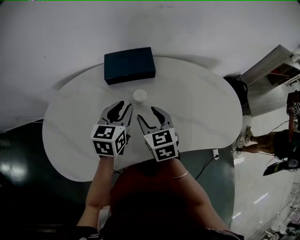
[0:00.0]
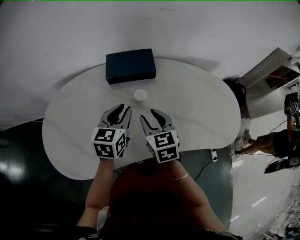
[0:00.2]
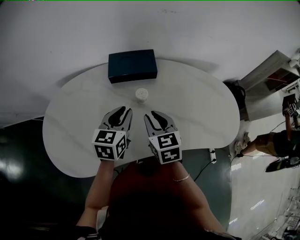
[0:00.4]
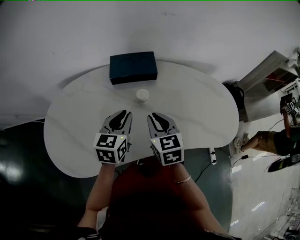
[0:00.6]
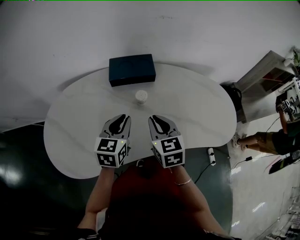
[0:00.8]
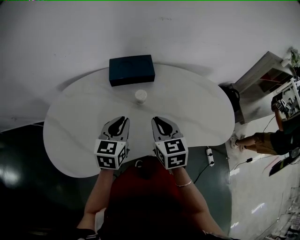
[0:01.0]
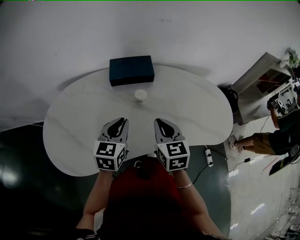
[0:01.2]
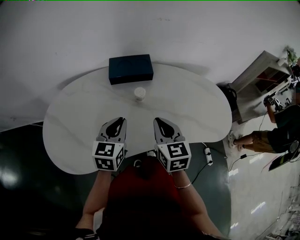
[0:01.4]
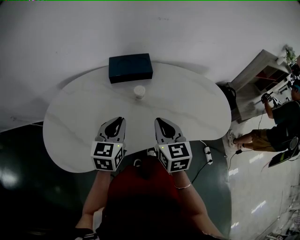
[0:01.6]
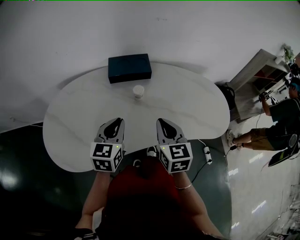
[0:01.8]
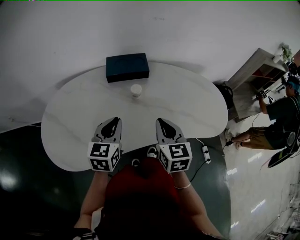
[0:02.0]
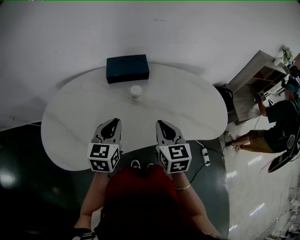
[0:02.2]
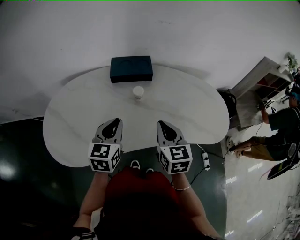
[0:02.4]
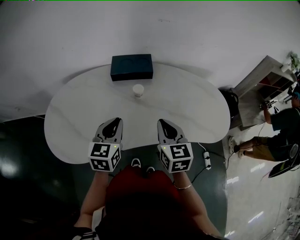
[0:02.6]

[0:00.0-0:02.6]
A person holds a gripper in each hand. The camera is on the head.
0:00.0 to 0:01.2: Both grippers travel together backward, approximately 10 cm. The right gripper closes.
0:01.2 to 0:02.6: The right gripper changes place by some 5 cm.

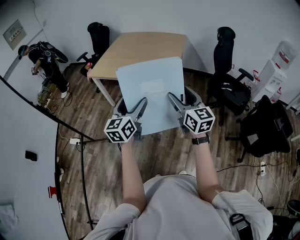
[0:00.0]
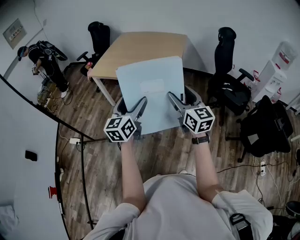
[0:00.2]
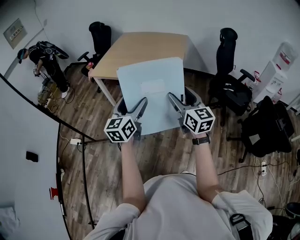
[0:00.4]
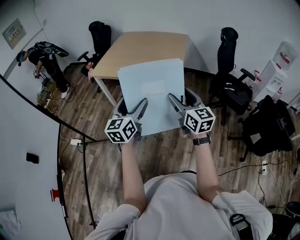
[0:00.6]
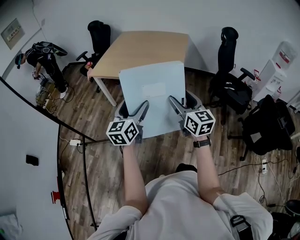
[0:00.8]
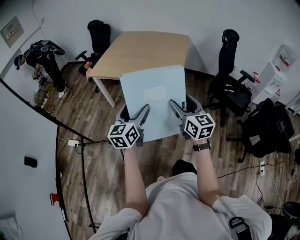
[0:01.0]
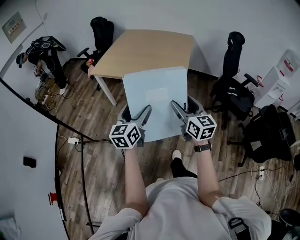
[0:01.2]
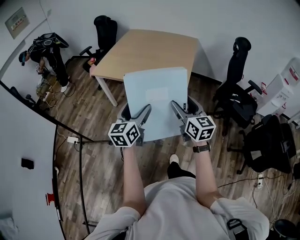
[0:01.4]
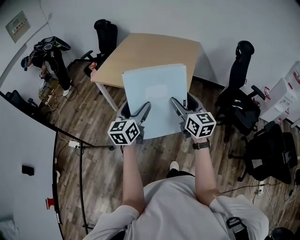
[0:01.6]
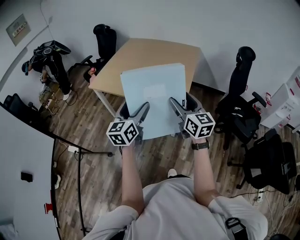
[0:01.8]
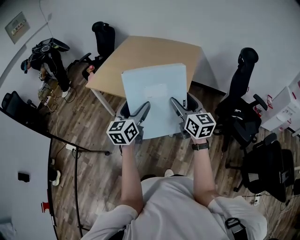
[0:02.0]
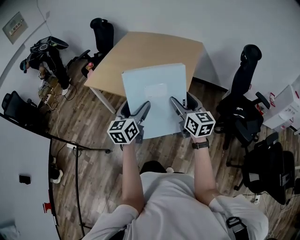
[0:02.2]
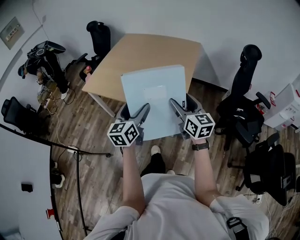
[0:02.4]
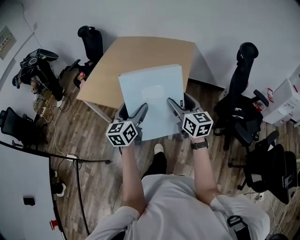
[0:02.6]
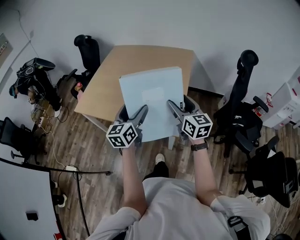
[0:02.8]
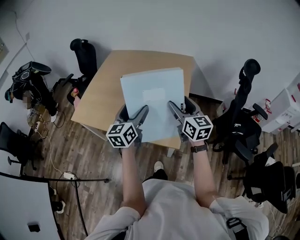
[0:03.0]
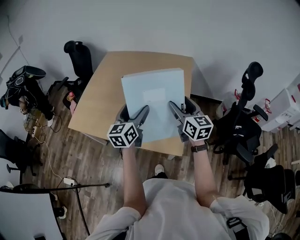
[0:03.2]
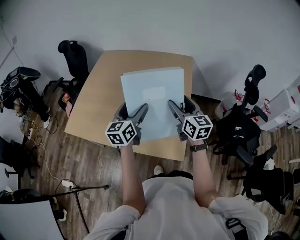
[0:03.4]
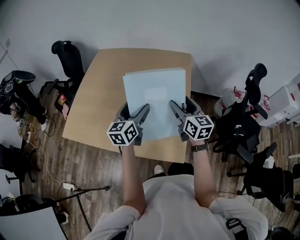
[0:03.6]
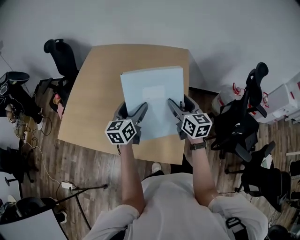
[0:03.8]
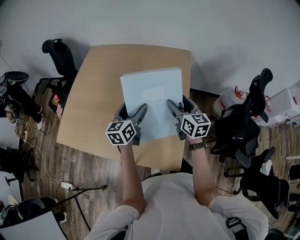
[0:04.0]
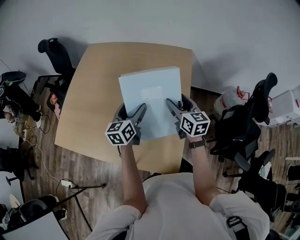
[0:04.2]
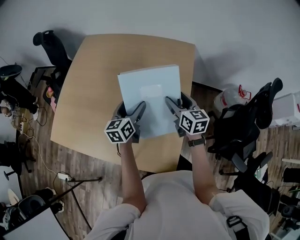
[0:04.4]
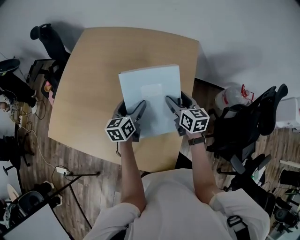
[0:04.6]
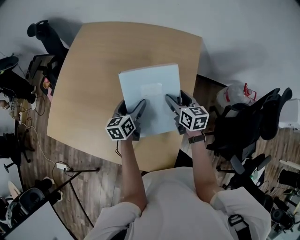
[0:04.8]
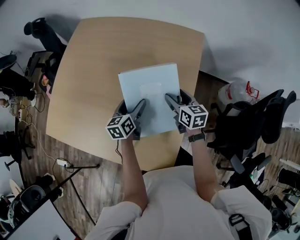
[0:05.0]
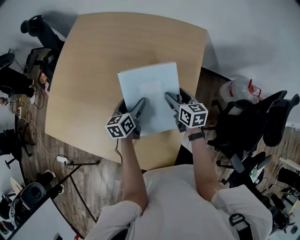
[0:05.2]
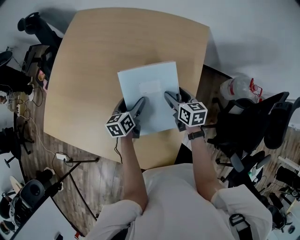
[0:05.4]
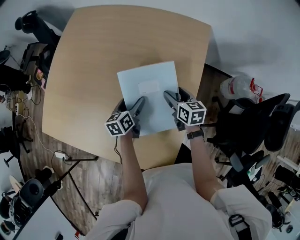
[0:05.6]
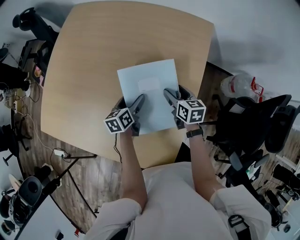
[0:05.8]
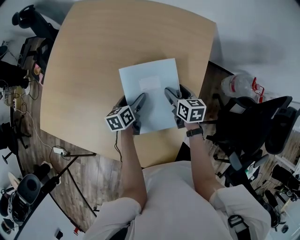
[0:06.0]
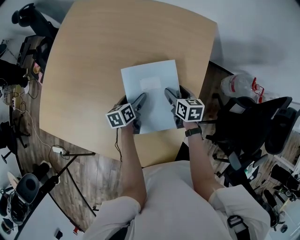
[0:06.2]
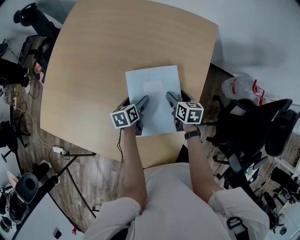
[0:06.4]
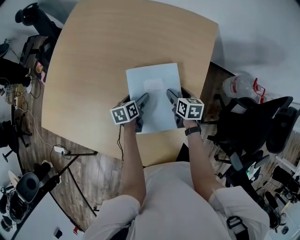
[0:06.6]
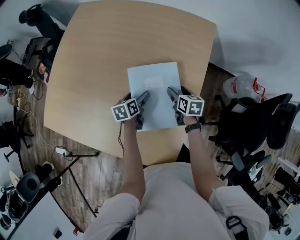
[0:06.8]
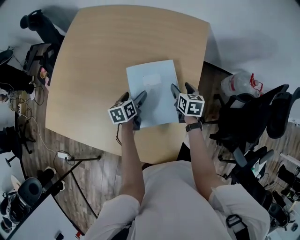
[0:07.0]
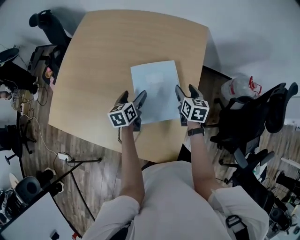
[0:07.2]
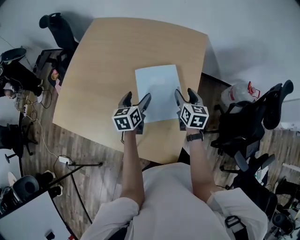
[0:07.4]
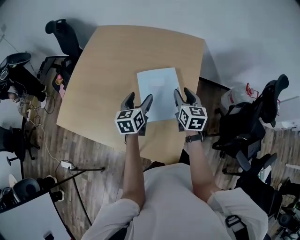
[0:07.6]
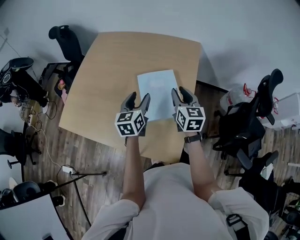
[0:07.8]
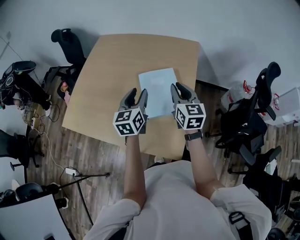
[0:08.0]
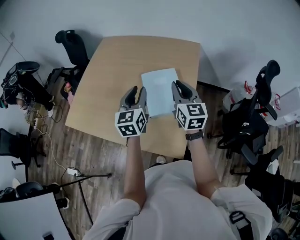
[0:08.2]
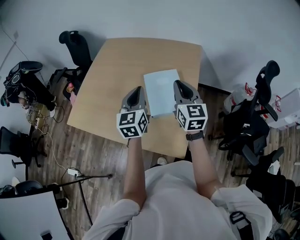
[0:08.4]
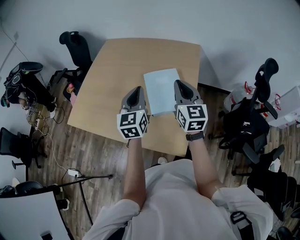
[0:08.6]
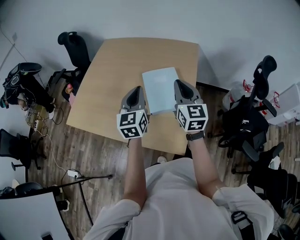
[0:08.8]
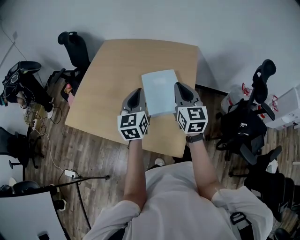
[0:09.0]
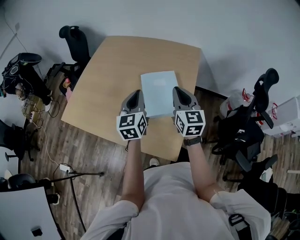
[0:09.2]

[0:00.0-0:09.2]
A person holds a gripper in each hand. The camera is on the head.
0:00.0 to 0:01.6: Both grippers move forward, about 15 cm.
0:01.6 to 0:03.0: The two grippers go some 35 cm forward.
0:03.0 to 0:04.6: The two grippers go approximately 35 cm forward and downward. The right gripper swivels roughly 20 degrees. The left gripper swivels approximately 20 degrees.
0:04.6 to 0:06.2: The grippers both shift downward by about 15 cm. The right gripper rotates some 20 degrees. The left gripper rotates roughly 30 degrees.
0:06.2 to 0:07.6: The two grippers go about 20 cm upward and backward. The right gripper rotates approximately 30 degrees; the left gripper rotates about 30 degrees.
0:07.6 to 0:09.2: Both grippers travel together upward and backward, roughly 15 cm. The left gripper changes its angle by about 20 degrees, and closes up. The right gripper closes up.

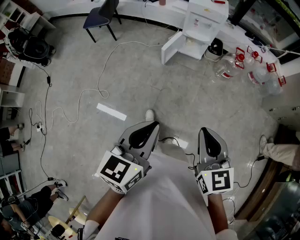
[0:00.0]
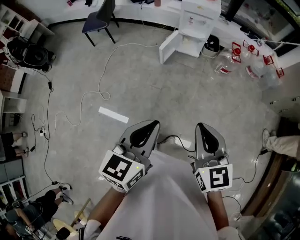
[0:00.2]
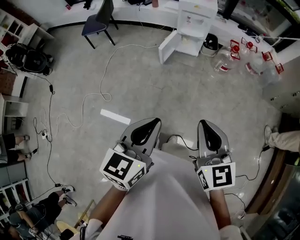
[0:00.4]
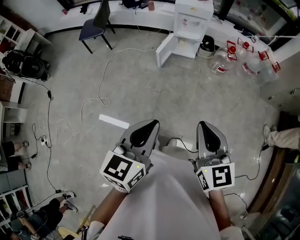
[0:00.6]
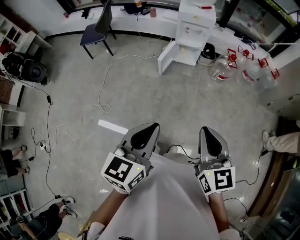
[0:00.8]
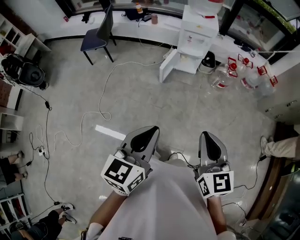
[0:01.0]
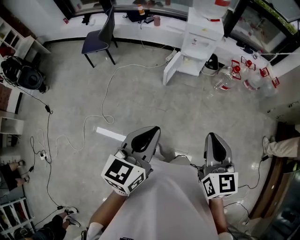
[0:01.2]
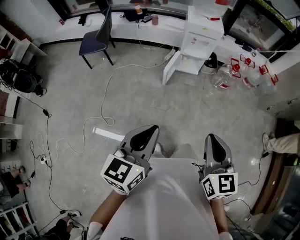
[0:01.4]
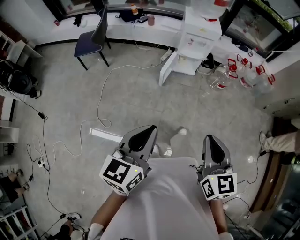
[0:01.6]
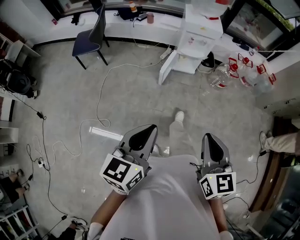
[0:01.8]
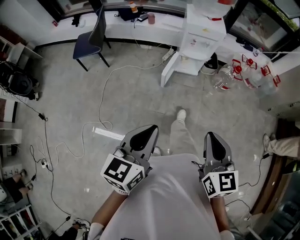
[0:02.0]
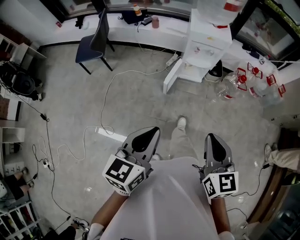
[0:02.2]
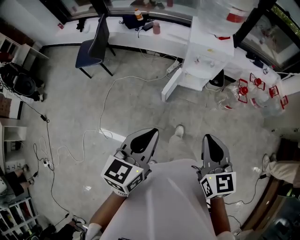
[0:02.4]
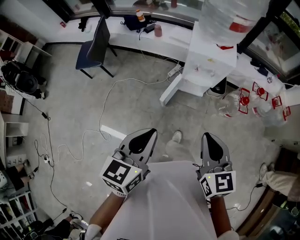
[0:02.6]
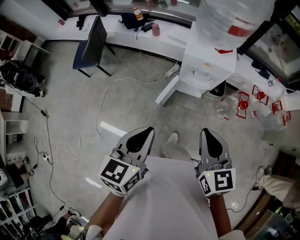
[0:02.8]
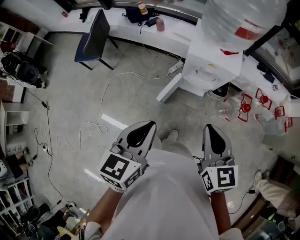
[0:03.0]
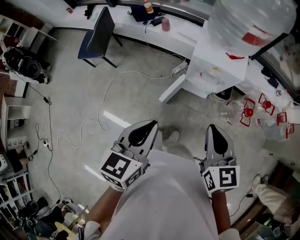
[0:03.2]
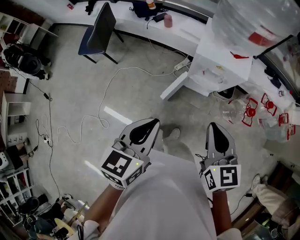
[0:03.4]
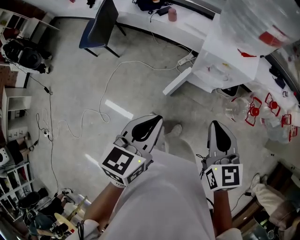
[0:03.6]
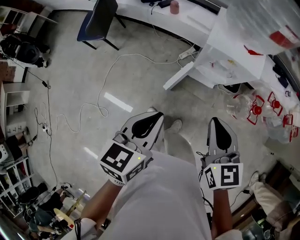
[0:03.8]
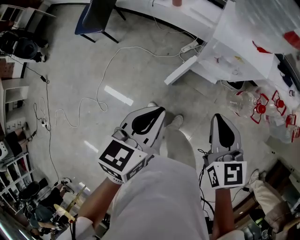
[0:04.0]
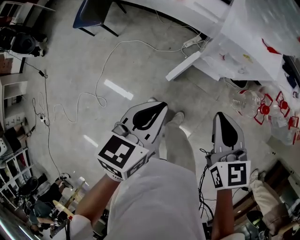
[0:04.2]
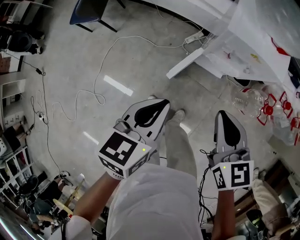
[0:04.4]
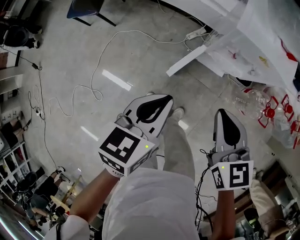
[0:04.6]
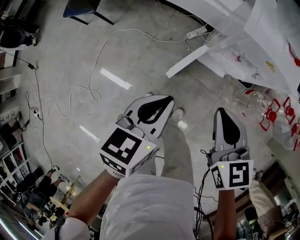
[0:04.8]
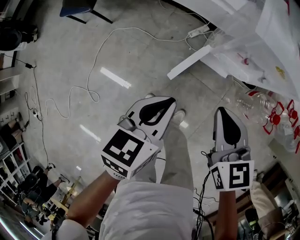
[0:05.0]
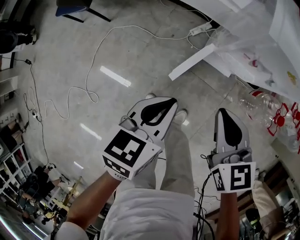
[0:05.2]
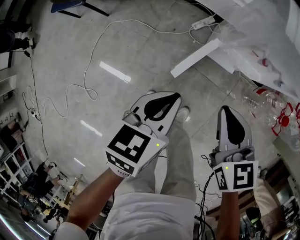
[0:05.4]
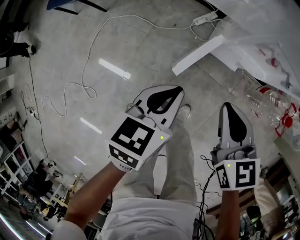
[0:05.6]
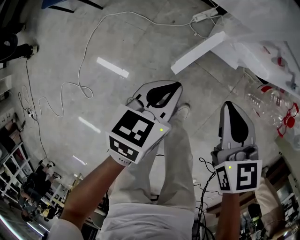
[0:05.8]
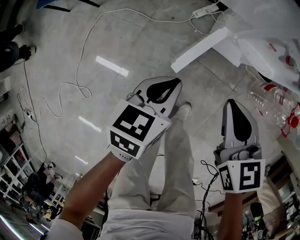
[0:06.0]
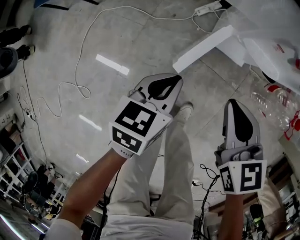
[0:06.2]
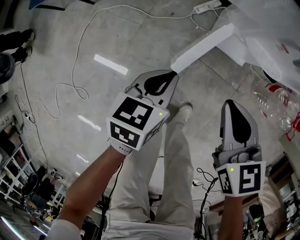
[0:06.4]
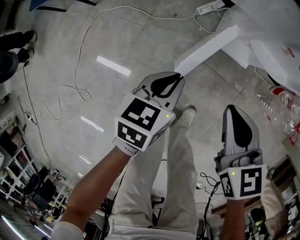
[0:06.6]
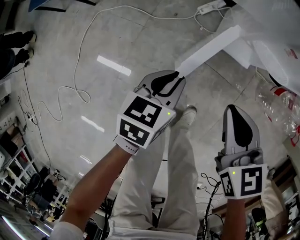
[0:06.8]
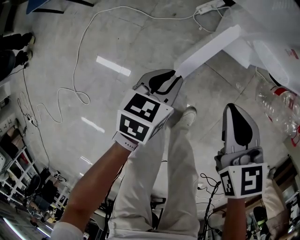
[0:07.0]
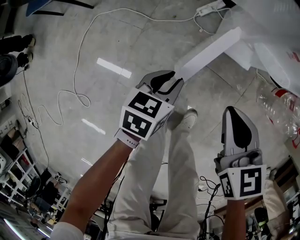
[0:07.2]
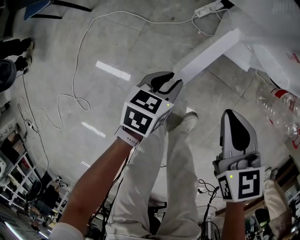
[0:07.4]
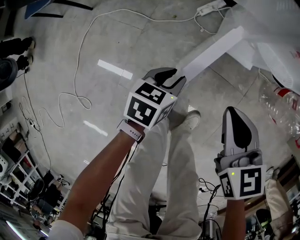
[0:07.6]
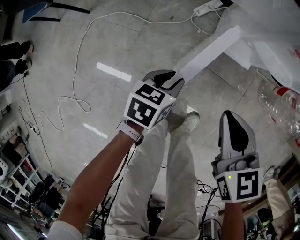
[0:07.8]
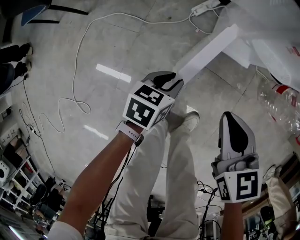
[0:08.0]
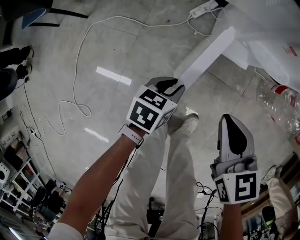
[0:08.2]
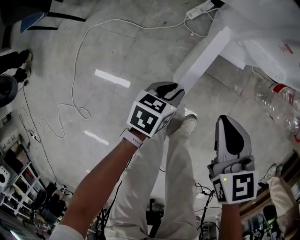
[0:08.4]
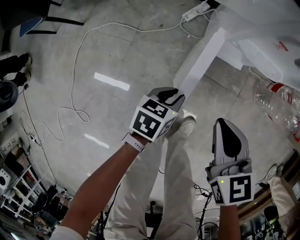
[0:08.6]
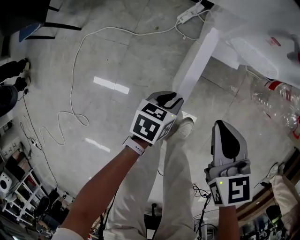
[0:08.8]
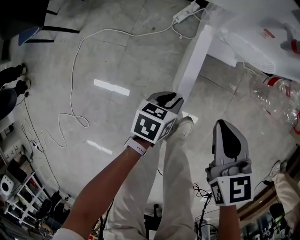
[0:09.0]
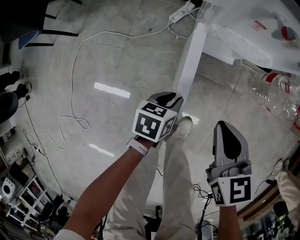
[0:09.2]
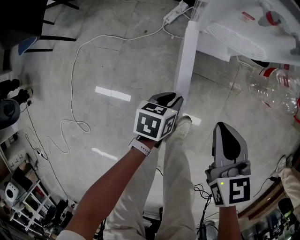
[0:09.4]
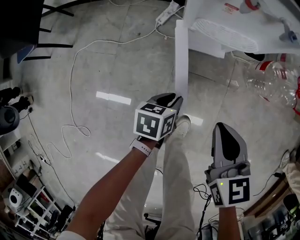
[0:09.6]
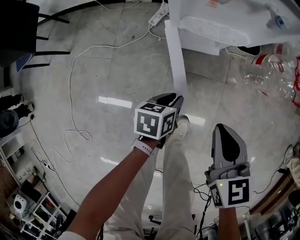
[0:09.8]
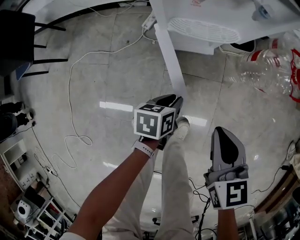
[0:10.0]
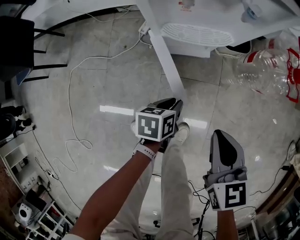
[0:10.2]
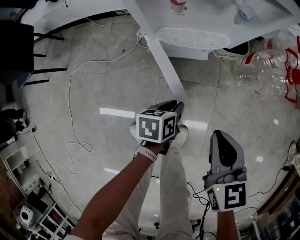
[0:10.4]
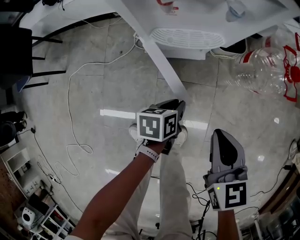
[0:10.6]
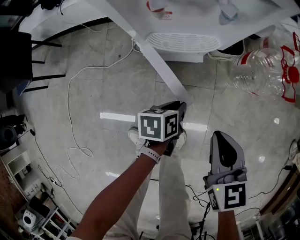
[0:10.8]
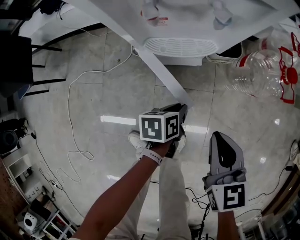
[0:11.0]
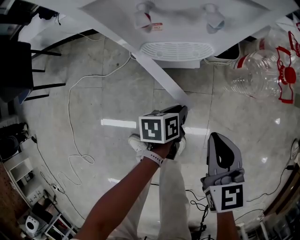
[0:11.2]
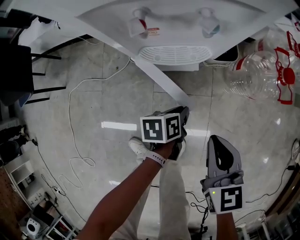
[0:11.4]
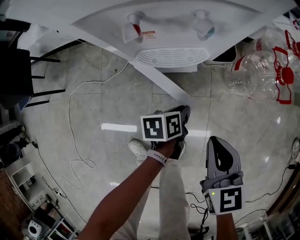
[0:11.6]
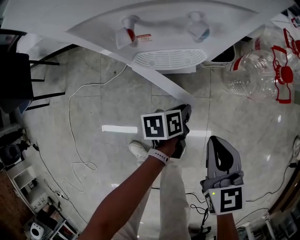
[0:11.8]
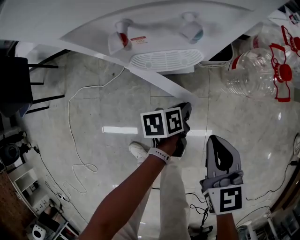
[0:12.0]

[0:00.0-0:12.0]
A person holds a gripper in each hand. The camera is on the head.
0:00.0 to 0:01.6: Both grippers move to the left and forward, approximately 15 cm.
0:01.6 to 0:03.0: The pair of grippers is taken forward, approximately 40 cm.
0:03.0 to 0:04.4: The left gripper shifts about 15 cm downward and forward, while the right gripper shifts approximately 15 cm downward, forward and to the left.
0:04.4 to 0:06.0: The two grippers go some 25 cm downward.
0:06.0 to 0:07.6: The left gripper is displaced downward by some 20 cm, and opens; the right gripper is displaced downward by about 10 cm.
0:07.6 to 0:09.0: Both grippers move to the right, some 5 cm.
0:09.0 to 0:10.4: The grippers both shift to the right by some 15 cm.
0:10.4 to 0:12.0: The right gripper changes place by some 5 cm. The left gripper moves forward and to the right, roughly 10 cm.
